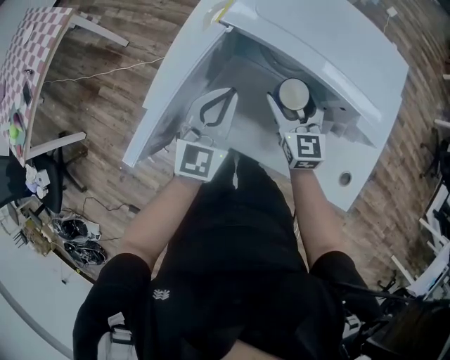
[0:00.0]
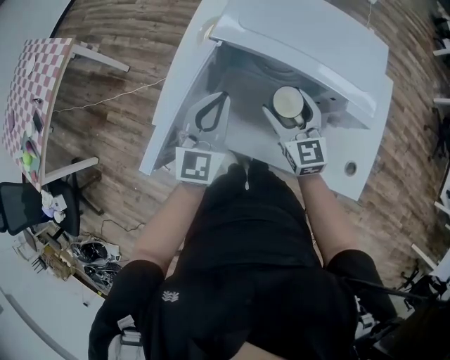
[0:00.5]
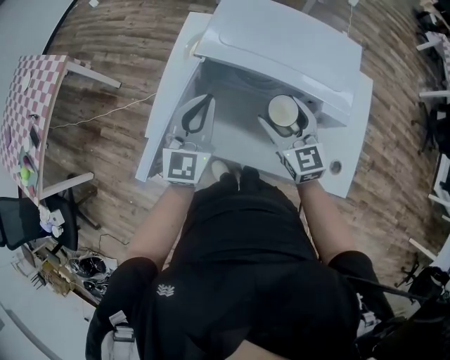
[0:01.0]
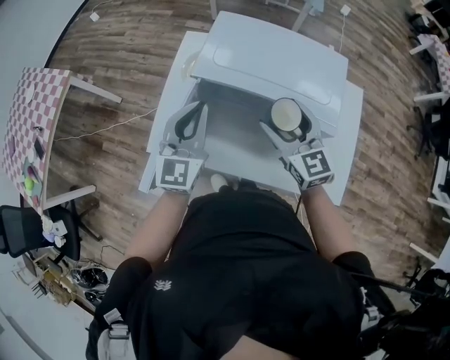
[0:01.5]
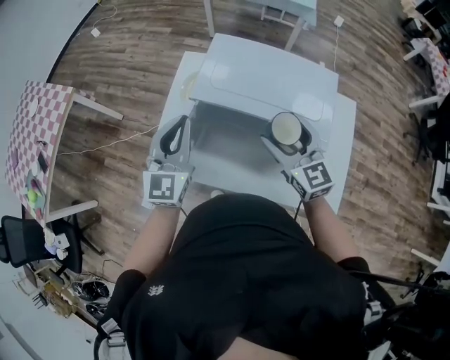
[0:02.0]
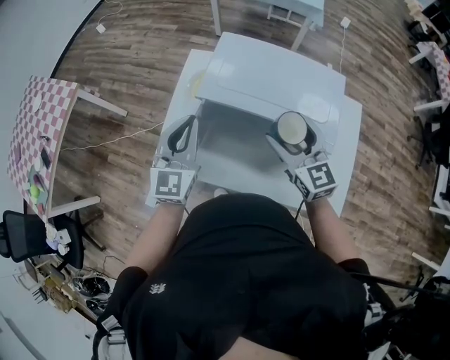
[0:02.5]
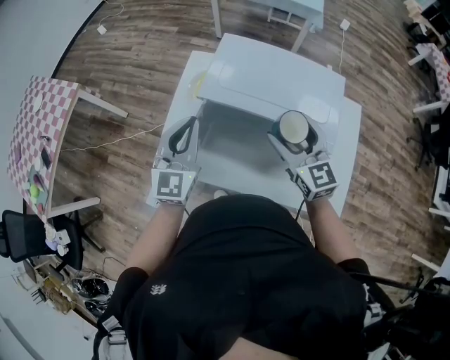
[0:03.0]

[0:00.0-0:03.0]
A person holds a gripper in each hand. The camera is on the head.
0:00.0 to 0:01.5: Both grippers move upward, about 15 cm.
0:01.5 to 0:03.0: There are only small adjustments of the grippers.

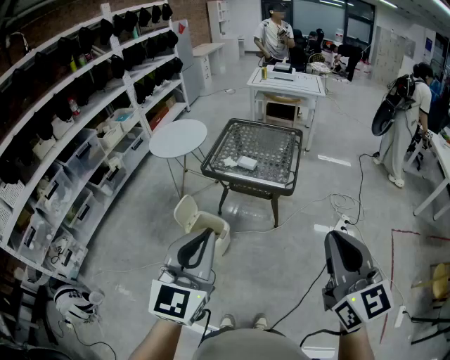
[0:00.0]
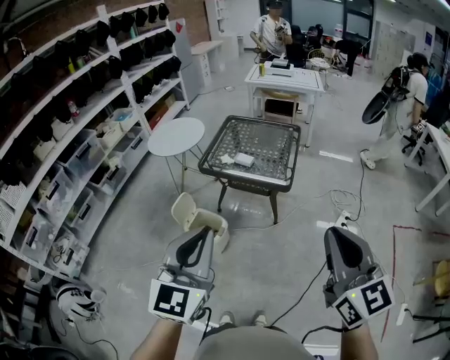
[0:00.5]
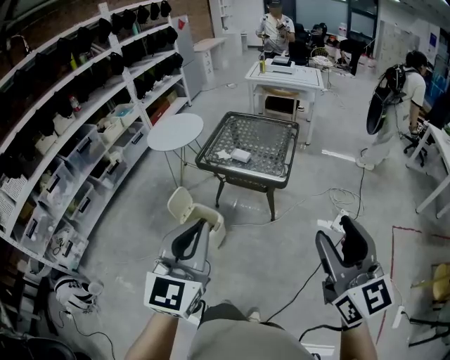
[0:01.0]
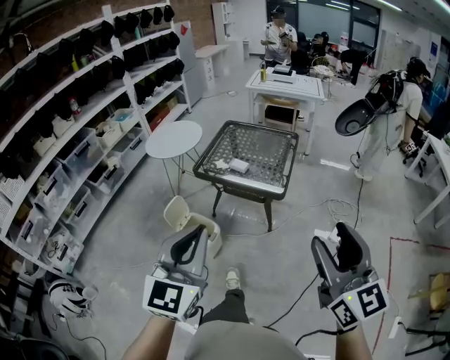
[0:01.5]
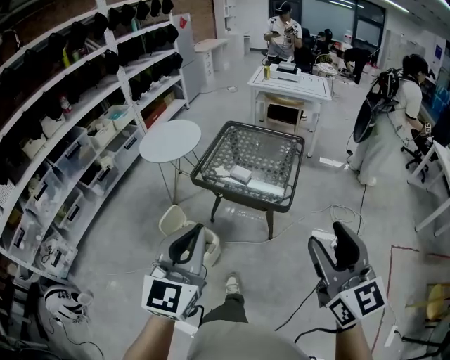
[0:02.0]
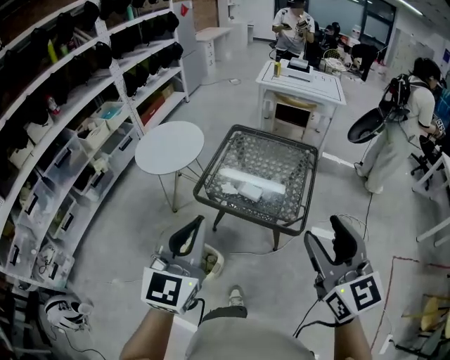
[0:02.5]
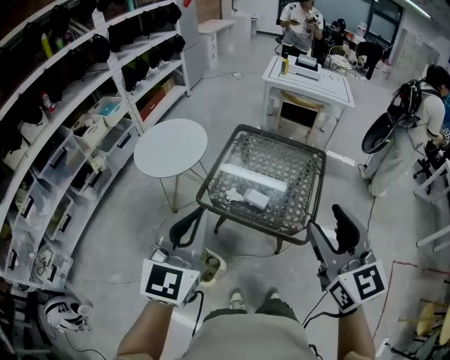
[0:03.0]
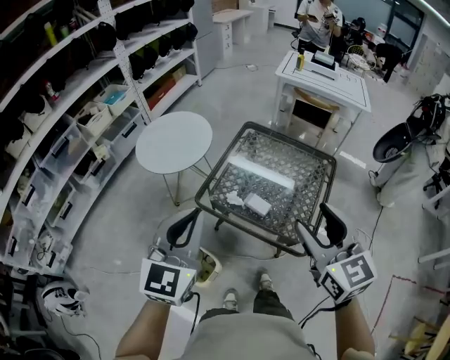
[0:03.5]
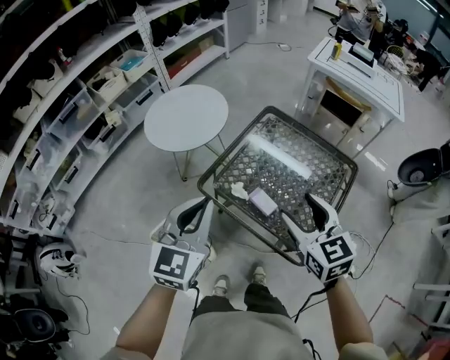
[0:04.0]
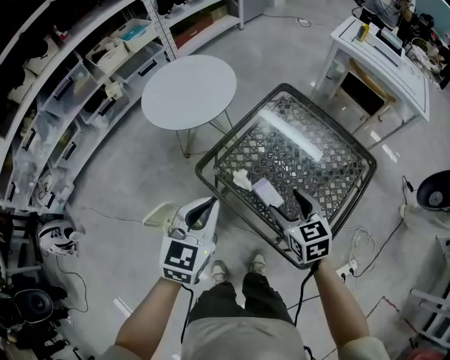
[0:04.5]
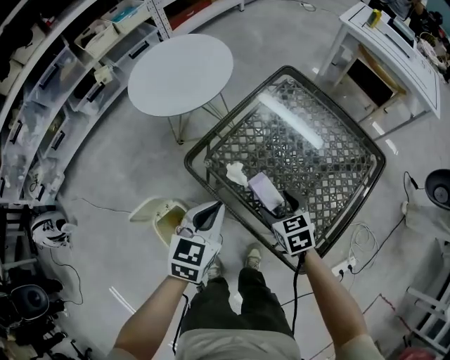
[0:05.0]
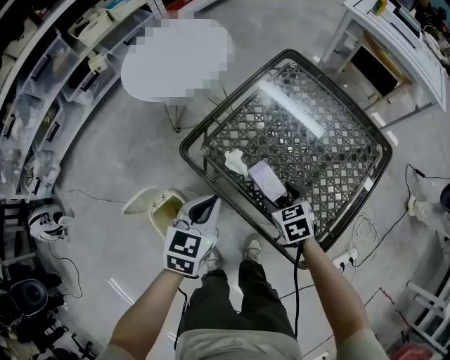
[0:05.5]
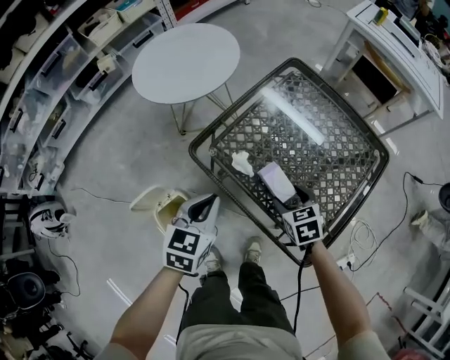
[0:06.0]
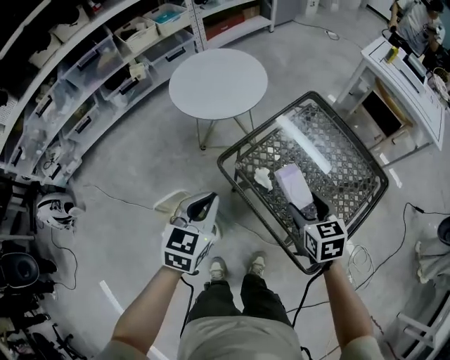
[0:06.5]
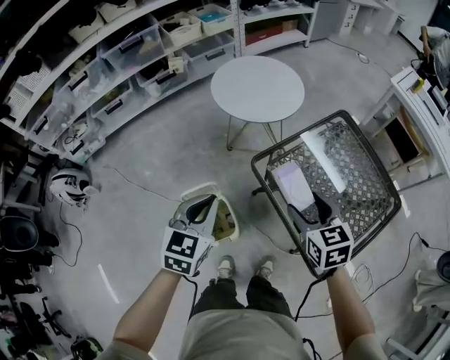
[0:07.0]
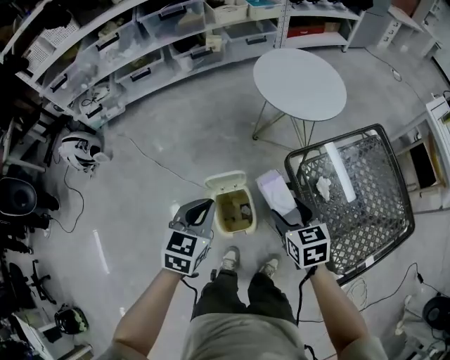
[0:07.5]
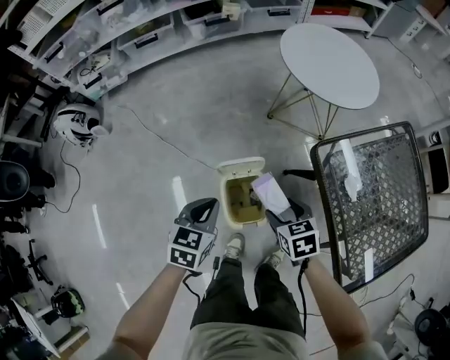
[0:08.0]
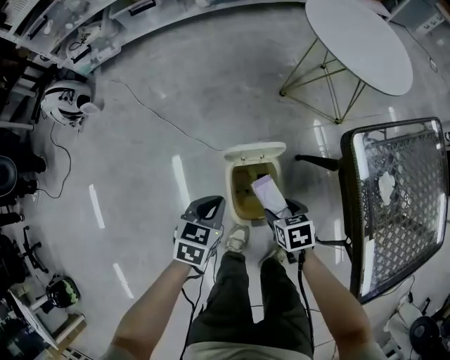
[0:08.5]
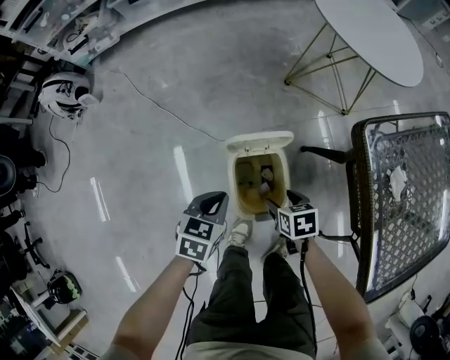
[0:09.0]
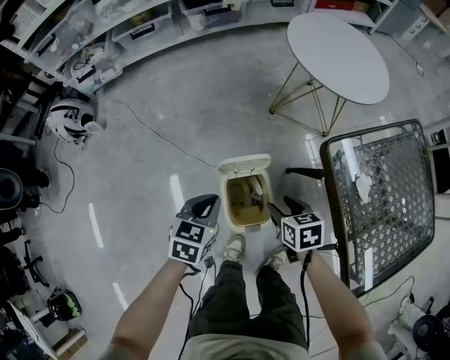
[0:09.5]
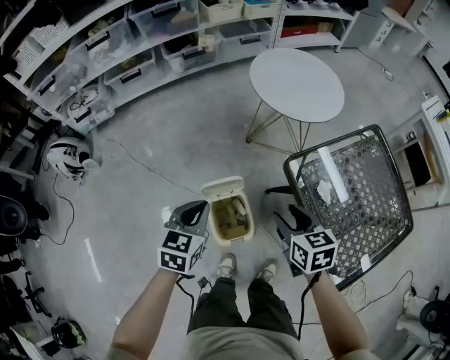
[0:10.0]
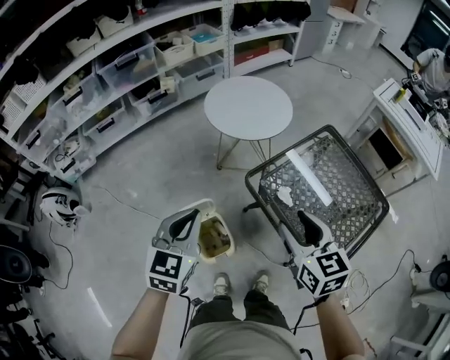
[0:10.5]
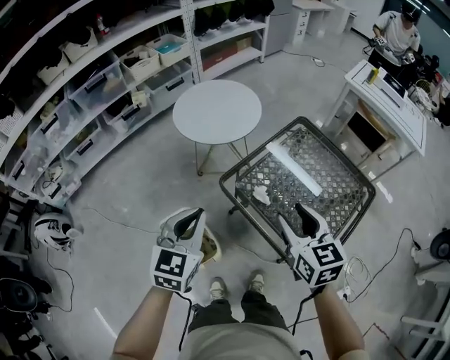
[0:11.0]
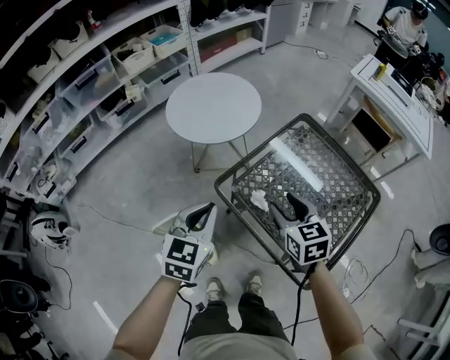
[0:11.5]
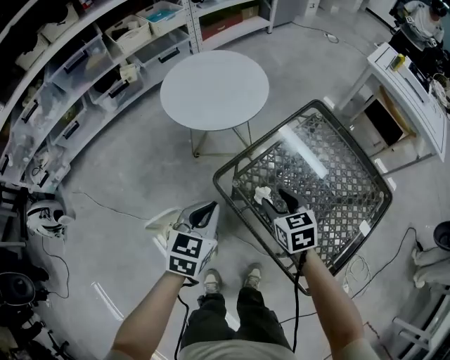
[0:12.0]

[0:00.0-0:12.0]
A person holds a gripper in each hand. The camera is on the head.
0:00.0 to 0:02.0: The grippers both shift forward by some 15 cm. The right gripper opens its fingers.
0:02.0 to 0:04.0: Both grippers are carried forward, some 50 cm. The right gripper swivels some 30 degrees.
0:04.0 to 0:06.0: The two grippers go approximately 30 cm downward. The right gripper points its fingers approximately 30 degrees further downward. Meanwhile the left gripper swivels approximately 30 degrees.
0:06.0 to 0:08.0: The left gripper moves about 15 cm upward and comes back, and turns by roughly 30 degrees. Meanwhile the right gripper travels upward and back again, roughly 25 cm each way, and swivels roughly 30 degrees.
0:08.0 to 0:10.0: The left gripper travels downward and back again, roughly 20 cm each way. The right gripper shifts some 15 cm upward and to the right.
0:10.0 to 0:12.0: Both grippers travel together to the right and forward, approximately 25 cm. The right gripper reaches roughly 20 cm upward, then returns.

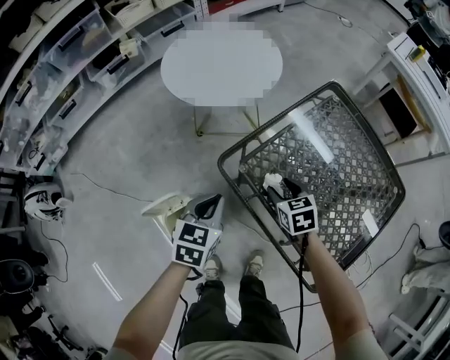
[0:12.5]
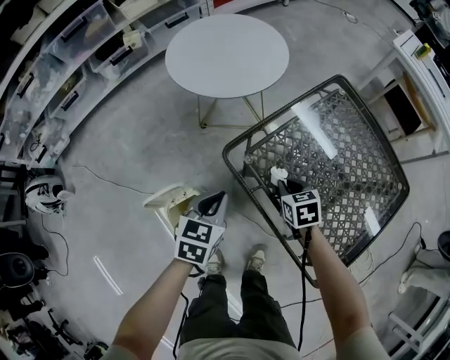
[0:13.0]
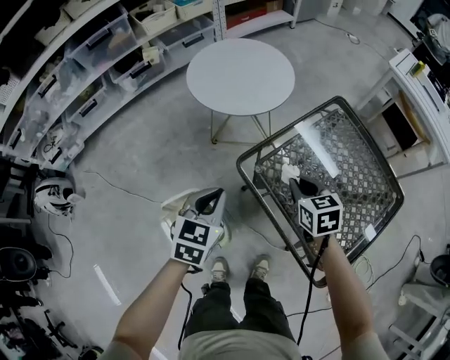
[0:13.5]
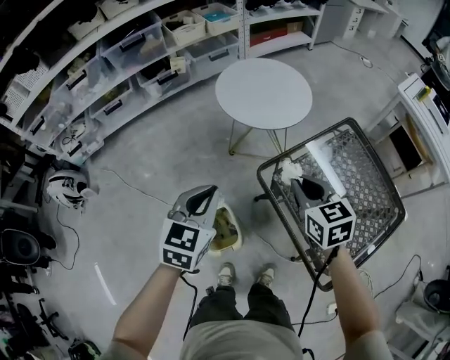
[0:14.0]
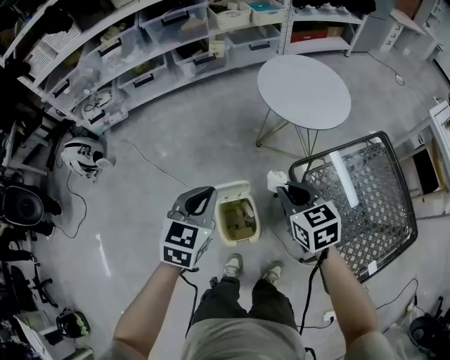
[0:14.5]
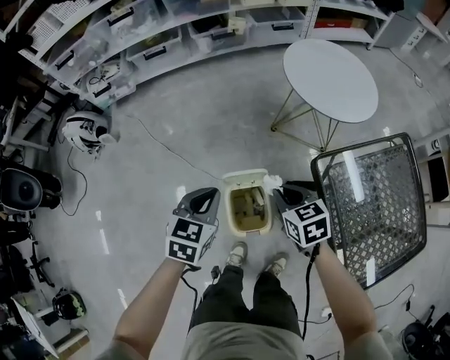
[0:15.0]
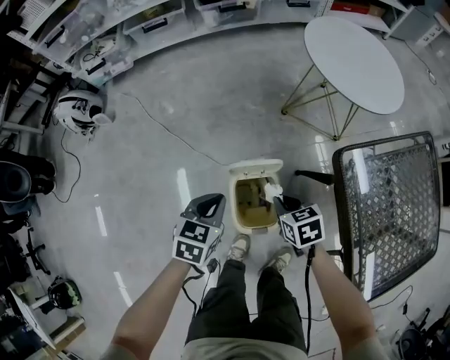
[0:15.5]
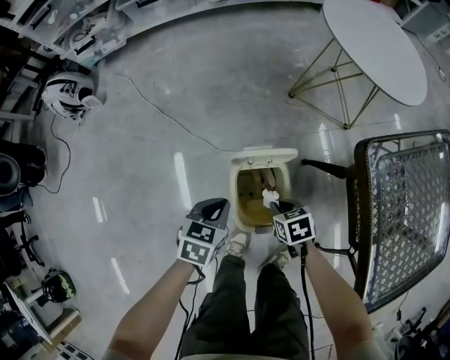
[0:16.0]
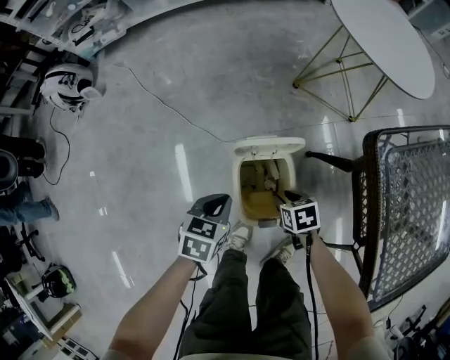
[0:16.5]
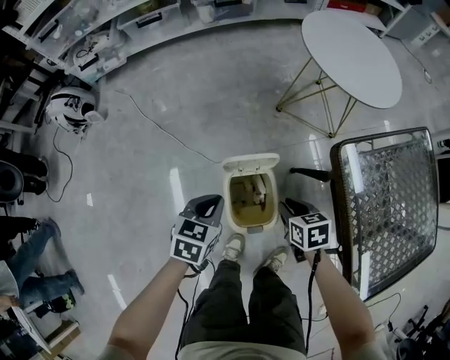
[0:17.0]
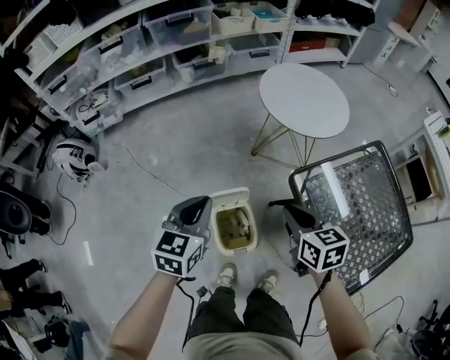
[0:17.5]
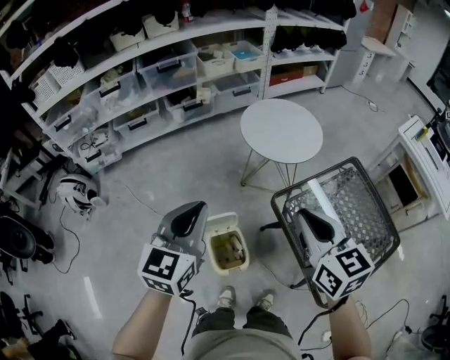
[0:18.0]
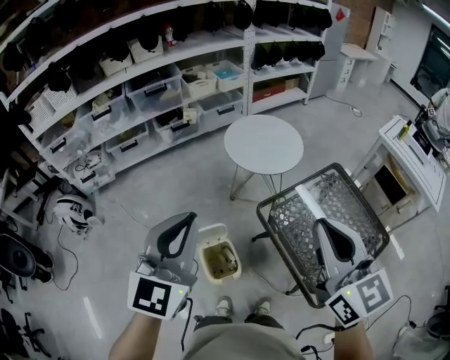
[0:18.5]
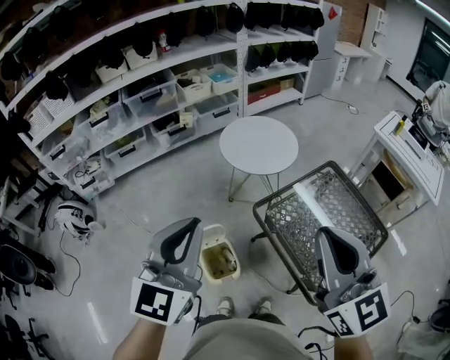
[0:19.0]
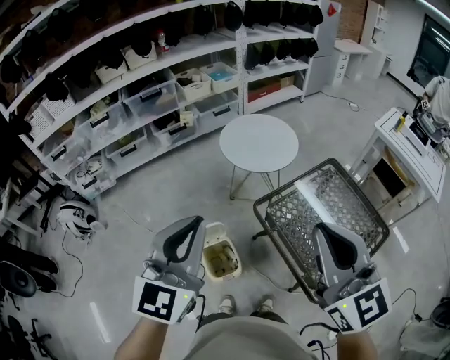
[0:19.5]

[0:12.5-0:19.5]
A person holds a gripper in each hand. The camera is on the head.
0:12.5 to 0:14.5: The grippers both shift to the left and upward by approximately 30 cm. The left gripper turns by approximately 20 degrees; the right gripper turns by roughly 30 degrees, and closes its fingers.
0:14.5 to 0:16.0: Both grippers travel together downward, about 40 cm. The left gripper changes its angle by about 30 degrees, while the right gripper turns by roughly 30 degrees.
0:16.0 to 0:17.5: Both grippers travel together upward, roughly 40 cm. The right gripper rotates approximately 40 degrees; the left gripper swivels approximately 30 degrees.
0:17.5 to 0:19.5: Both grippers move upward, some 35 cm. The right gripper tilts its fingers roughly 30 degrees upward. The left gripper rotates some 30 degrees.

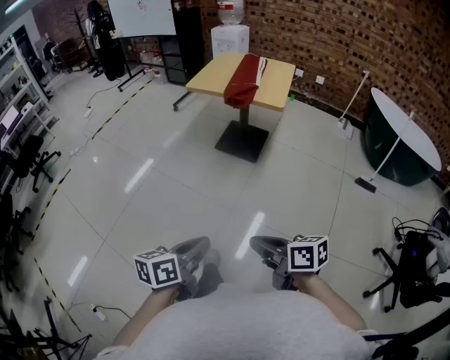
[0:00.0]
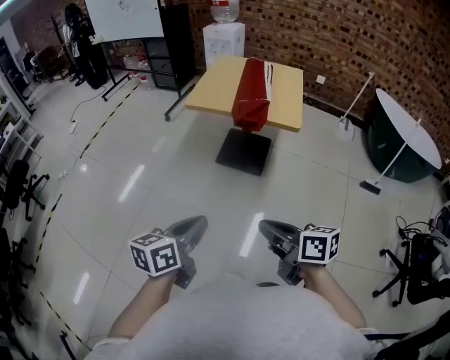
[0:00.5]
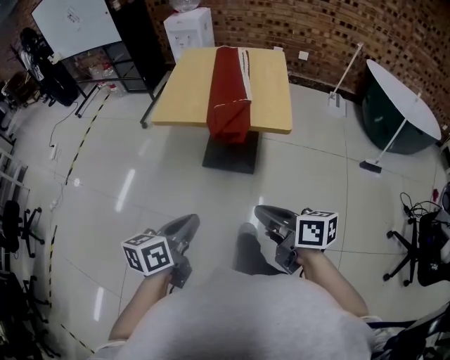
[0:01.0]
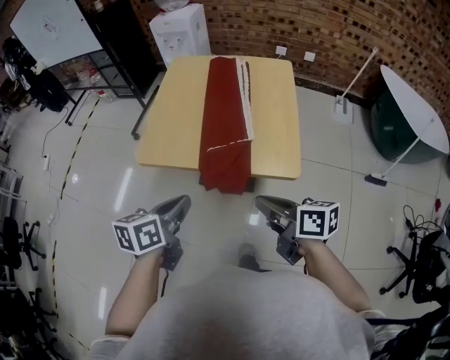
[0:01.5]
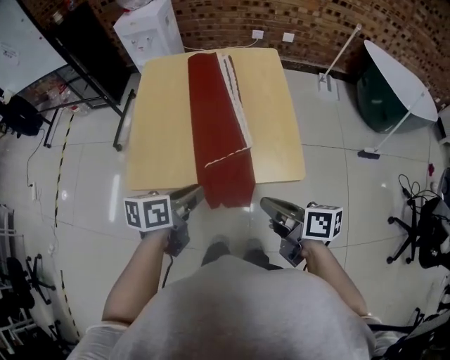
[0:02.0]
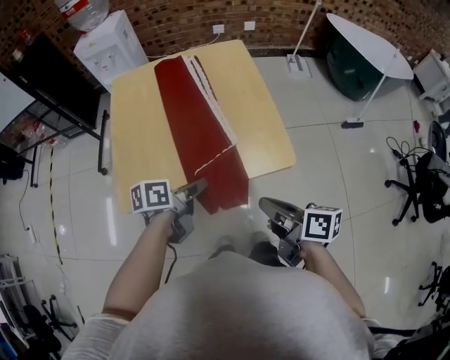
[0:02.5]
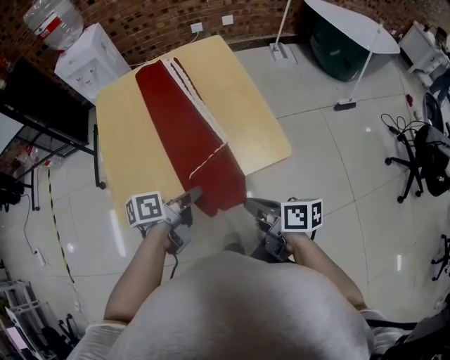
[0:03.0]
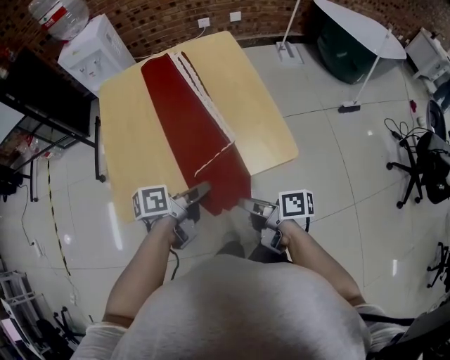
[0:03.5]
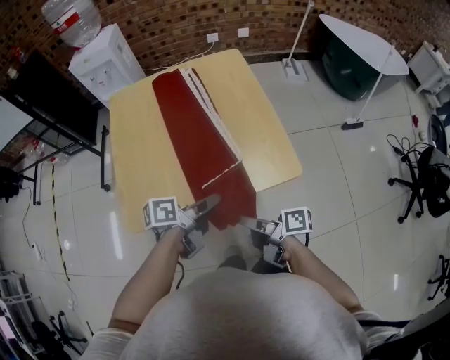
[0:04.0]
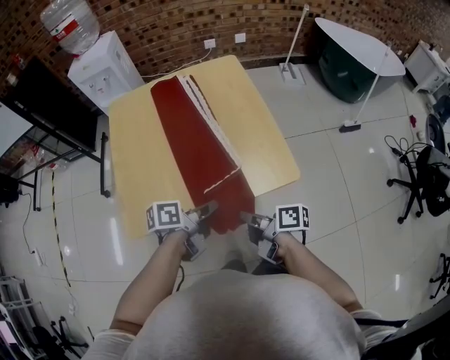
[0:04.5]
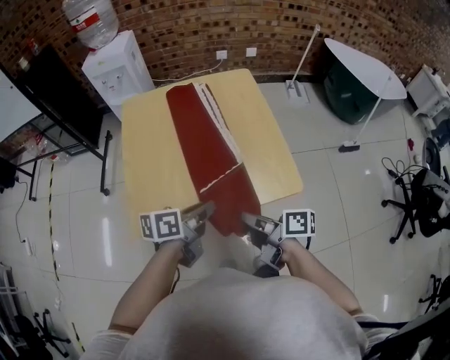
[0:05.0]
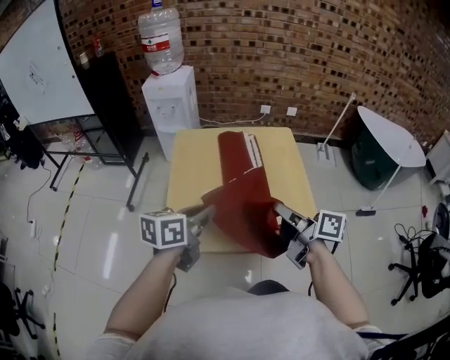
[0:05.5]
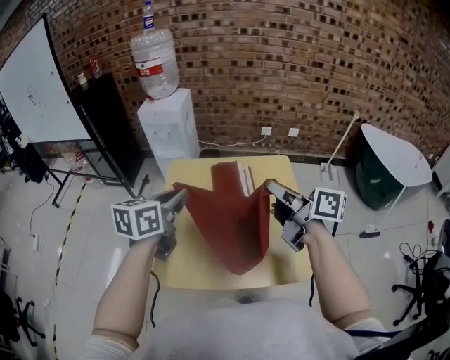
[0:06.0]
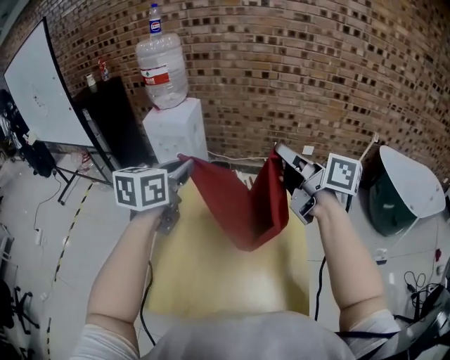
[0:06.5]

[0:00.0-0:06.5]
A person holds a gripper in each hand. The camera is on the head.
0:00.0 to 0:02.0: Both grippers are carried about 80 cm. The left gripper changes its angle by roughly 30 degrees; the right gripper rotates about 30 degrees.
0:02.0 to 0:04.5: The left gripper moves downward, about 5 cm, turns by some 30 degrees, and opens, then closes once more. Meanwhile the right gripper moves downward and to the left, some 10 cm, rotates some 30 degrees, and opens and closes again.
0:04.5 to 0:06.5: Both grippers travel together forward and upward, roughly 50 cm. The left gripper swivels approximately 60 degrees; the right gripper rotates around the line of its fingers by roughly 40 degrees, counterclockwise from behind.
